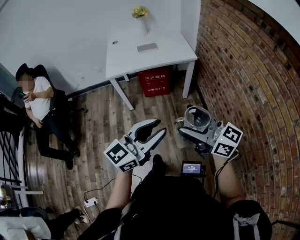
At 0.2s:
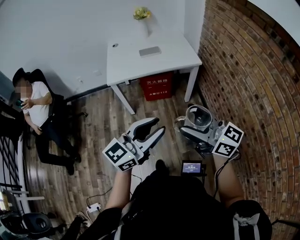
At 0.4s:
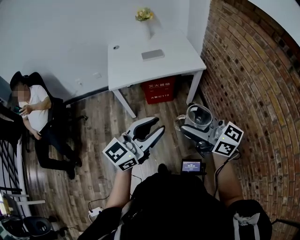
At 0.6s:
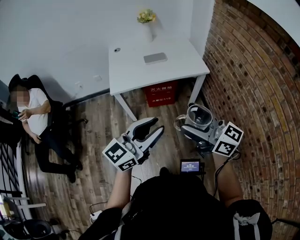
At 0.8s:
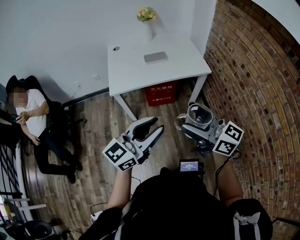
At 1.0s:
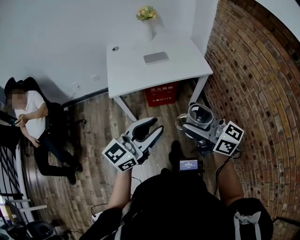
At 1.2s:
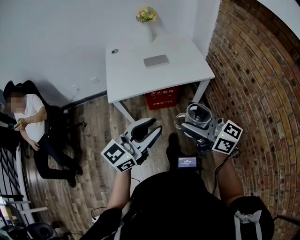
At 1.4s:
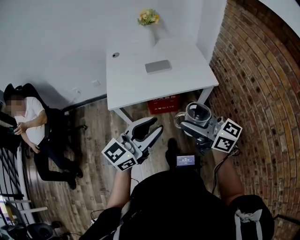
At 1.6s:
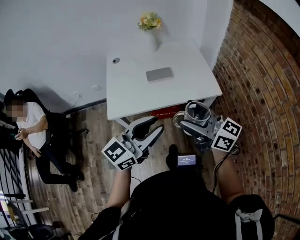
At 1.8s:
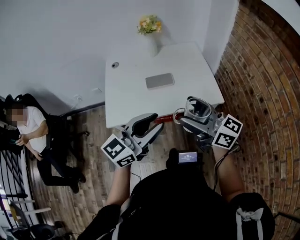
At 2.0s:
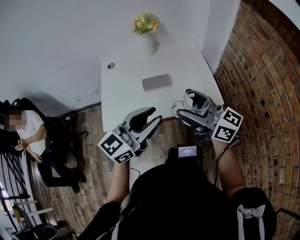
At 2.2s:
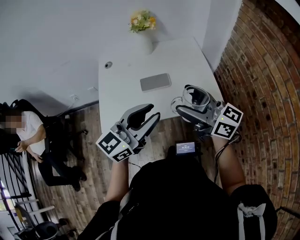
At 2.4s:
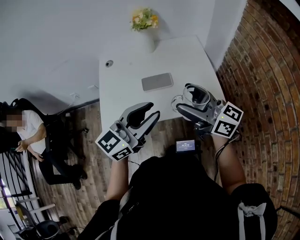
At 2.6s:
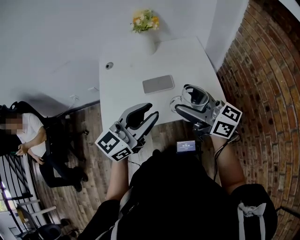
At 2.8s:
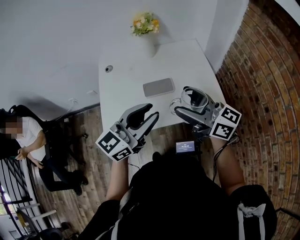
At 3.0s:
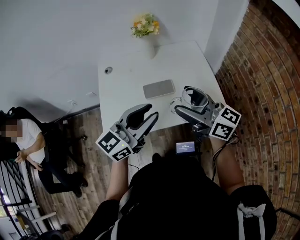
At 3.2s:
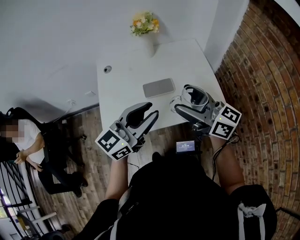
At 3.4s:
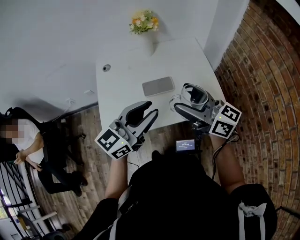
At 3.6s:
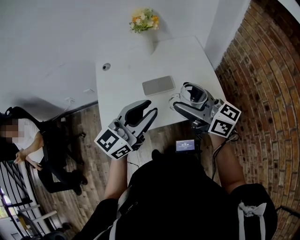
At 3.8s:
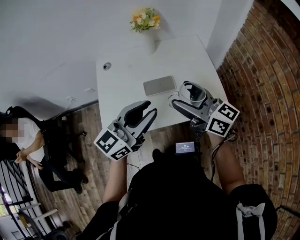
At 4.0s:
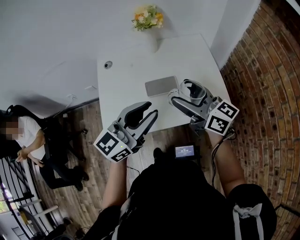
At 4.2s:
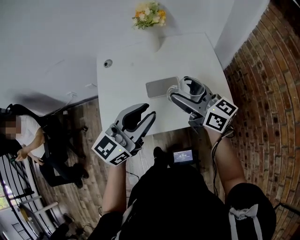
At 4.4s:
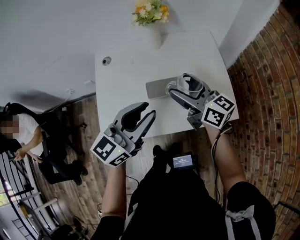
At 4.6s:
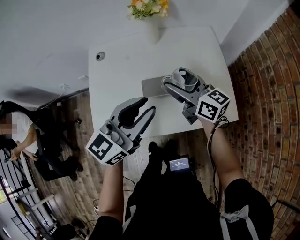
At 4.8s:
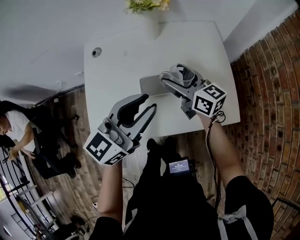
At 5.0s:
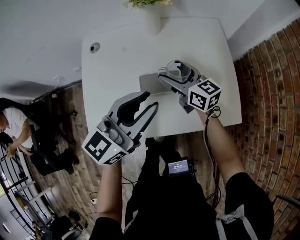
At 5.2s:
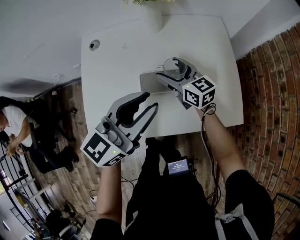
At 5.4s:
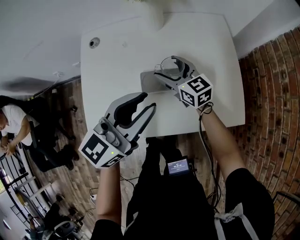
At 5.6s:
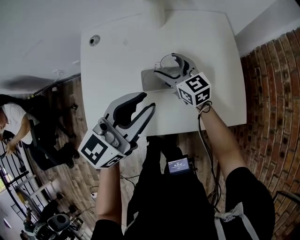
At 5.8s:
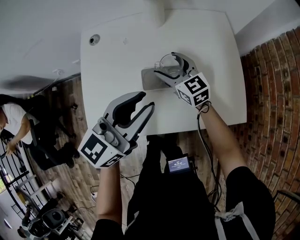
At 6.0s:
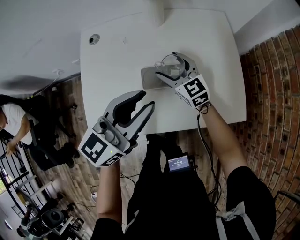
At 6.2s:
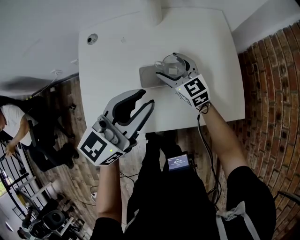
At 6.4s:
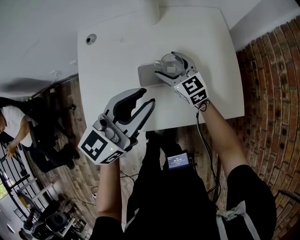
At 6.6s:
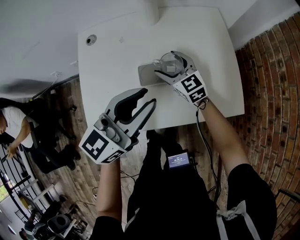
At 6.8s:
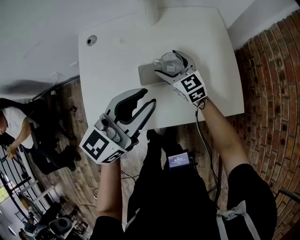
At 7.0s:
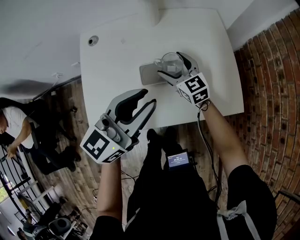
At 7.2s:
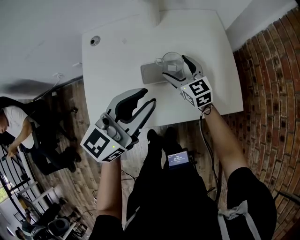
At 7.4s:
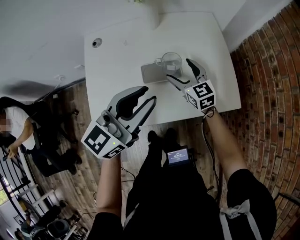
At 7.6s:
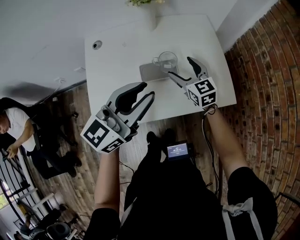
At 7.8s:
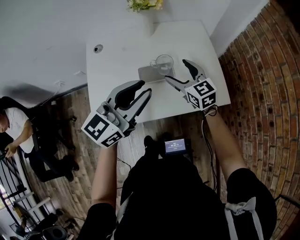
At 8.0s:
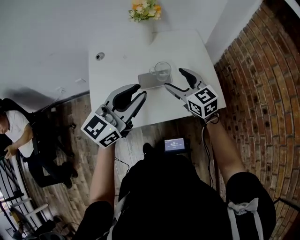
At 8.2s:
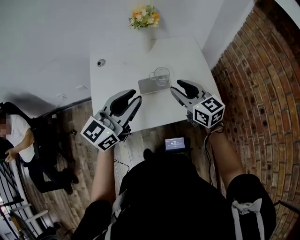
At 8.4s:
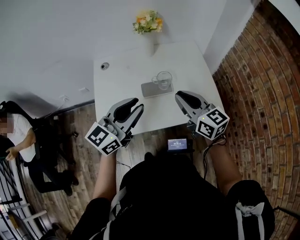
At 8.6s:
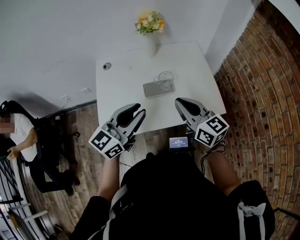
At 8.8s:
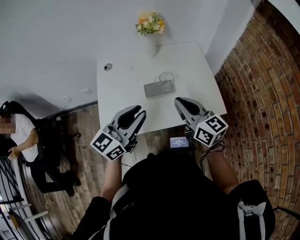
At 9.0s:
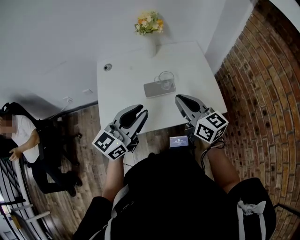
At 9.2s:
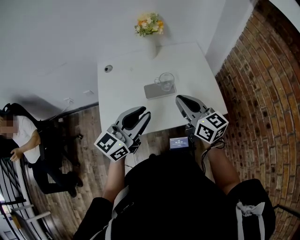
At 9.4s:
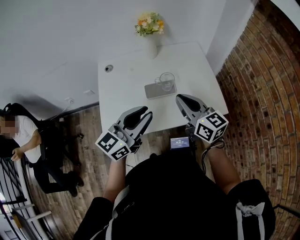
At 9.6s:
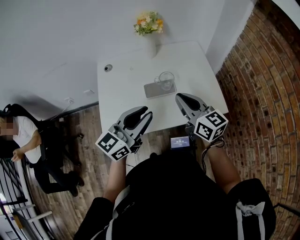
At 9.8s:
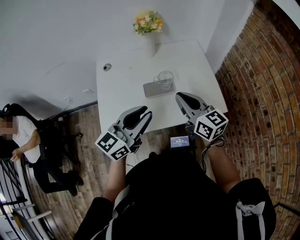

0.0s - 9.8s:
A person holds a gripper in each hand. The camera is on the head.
0.0s - 1.4s: Both grippers move forward, about 35 cm.
1.4s - 2.8s: The two grippers go roughly 25 cm forward.
2.8s - 4.2s: The right gripper is displaced forward and downward by about 10 cm, while the left gripper goes about 5 cm forward.
4.2s - 5.6s: The right gripper goes roughly 25 cm downward and forward, and rotates approximately 30 degrees; the left gripper moves forward and downward, roughly 10 cm.
5.6s - 7.0s: The grippers make only small movements.
7.0s - 8.4s: The right gripper shifts about 25 cm upward and backward, and closes. The left gripper goes some 10 cm backward and upward.
8.4s - 9.8s: The grippers make only small movements.

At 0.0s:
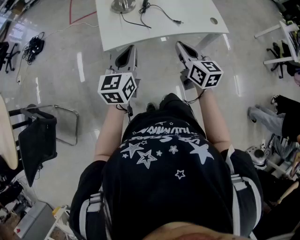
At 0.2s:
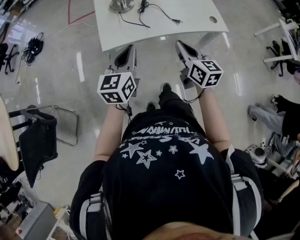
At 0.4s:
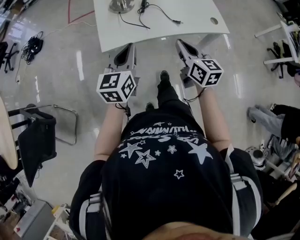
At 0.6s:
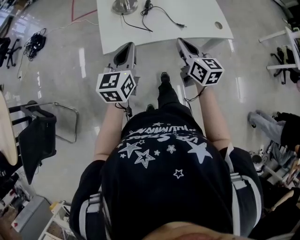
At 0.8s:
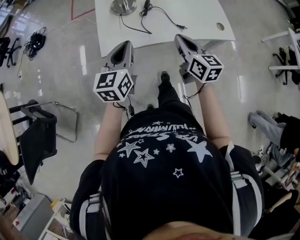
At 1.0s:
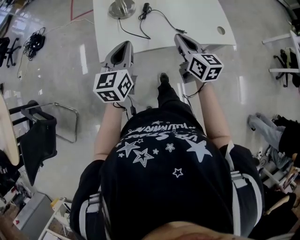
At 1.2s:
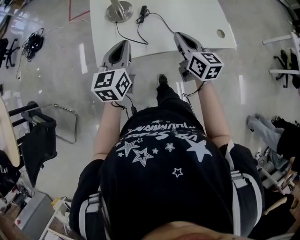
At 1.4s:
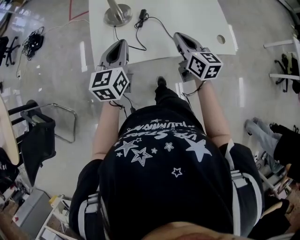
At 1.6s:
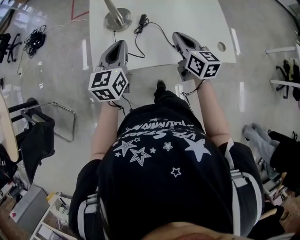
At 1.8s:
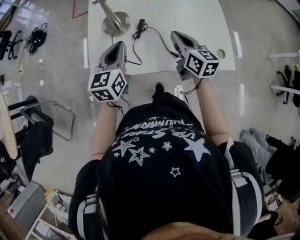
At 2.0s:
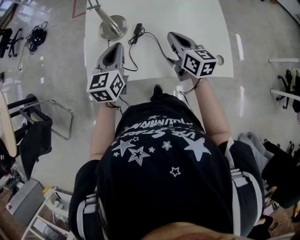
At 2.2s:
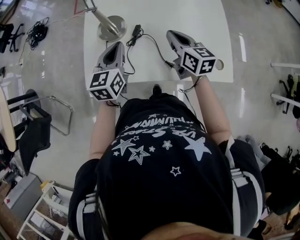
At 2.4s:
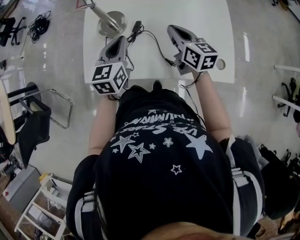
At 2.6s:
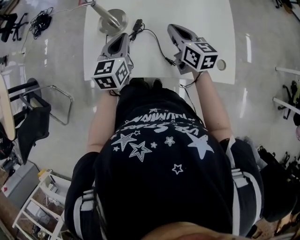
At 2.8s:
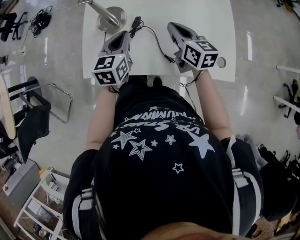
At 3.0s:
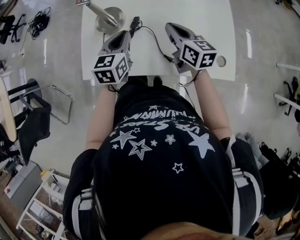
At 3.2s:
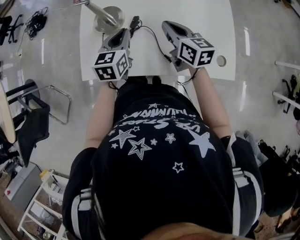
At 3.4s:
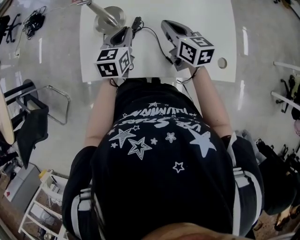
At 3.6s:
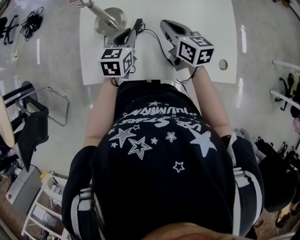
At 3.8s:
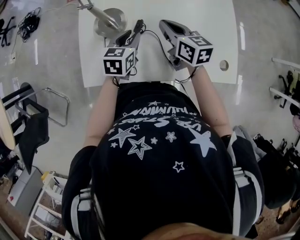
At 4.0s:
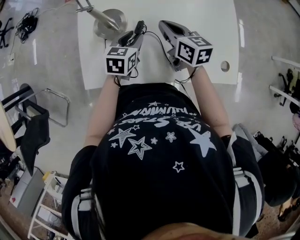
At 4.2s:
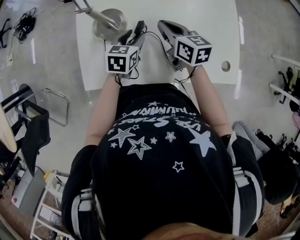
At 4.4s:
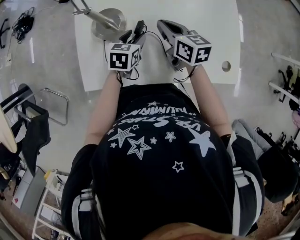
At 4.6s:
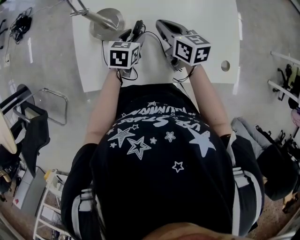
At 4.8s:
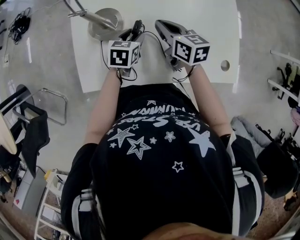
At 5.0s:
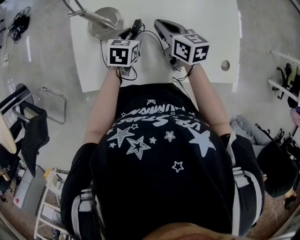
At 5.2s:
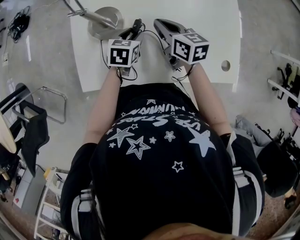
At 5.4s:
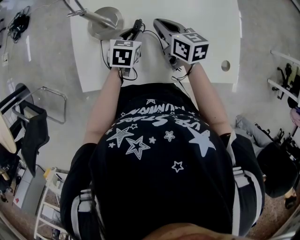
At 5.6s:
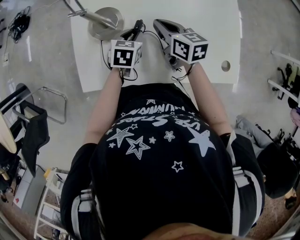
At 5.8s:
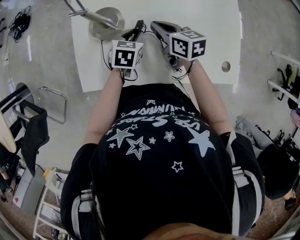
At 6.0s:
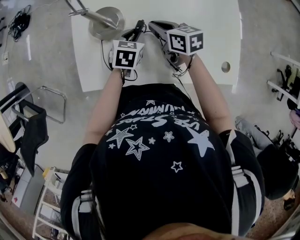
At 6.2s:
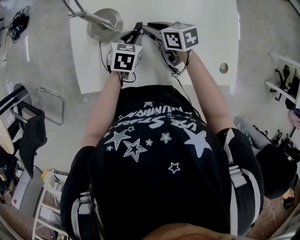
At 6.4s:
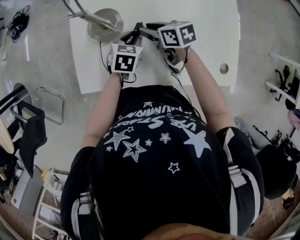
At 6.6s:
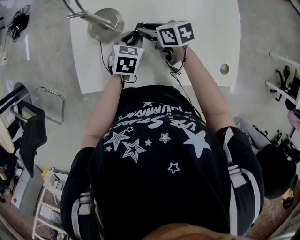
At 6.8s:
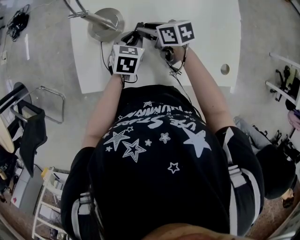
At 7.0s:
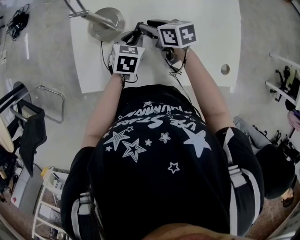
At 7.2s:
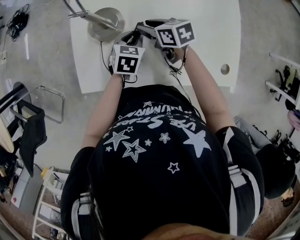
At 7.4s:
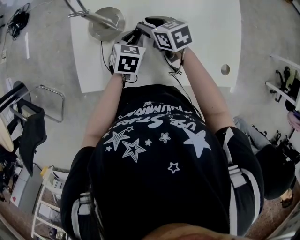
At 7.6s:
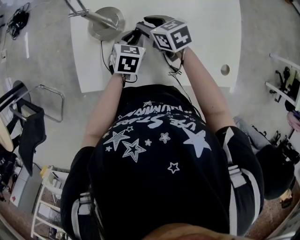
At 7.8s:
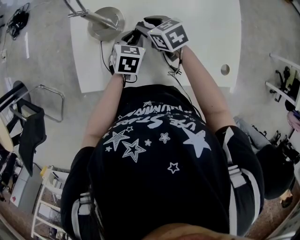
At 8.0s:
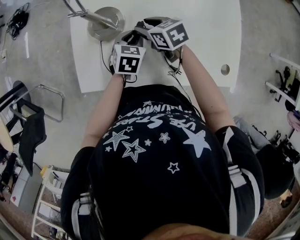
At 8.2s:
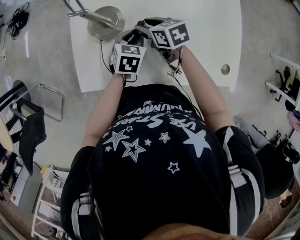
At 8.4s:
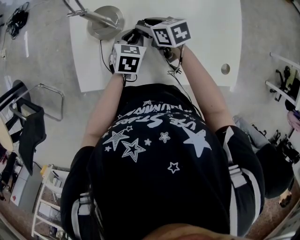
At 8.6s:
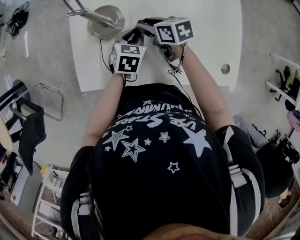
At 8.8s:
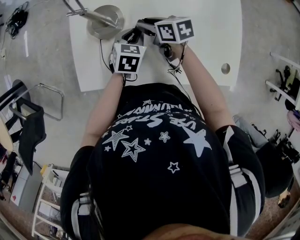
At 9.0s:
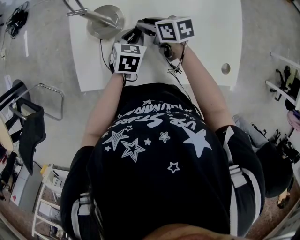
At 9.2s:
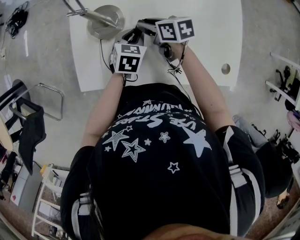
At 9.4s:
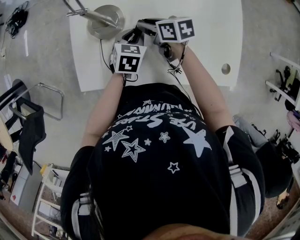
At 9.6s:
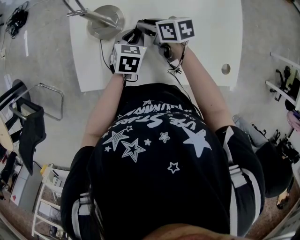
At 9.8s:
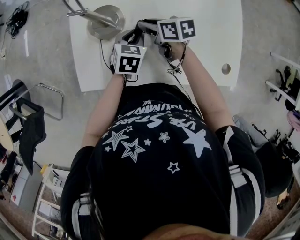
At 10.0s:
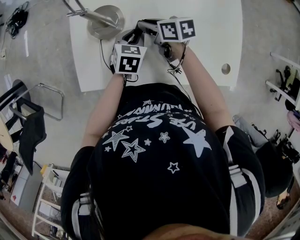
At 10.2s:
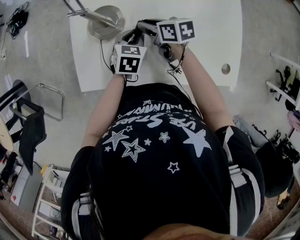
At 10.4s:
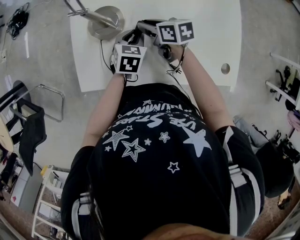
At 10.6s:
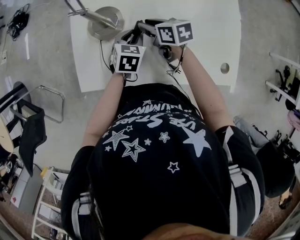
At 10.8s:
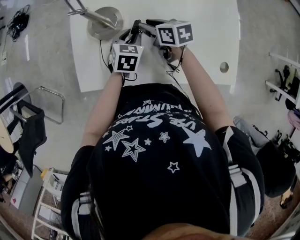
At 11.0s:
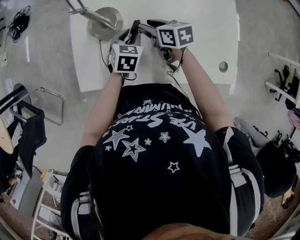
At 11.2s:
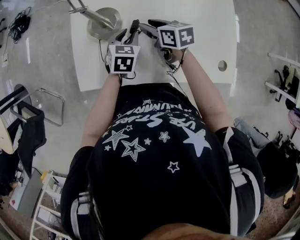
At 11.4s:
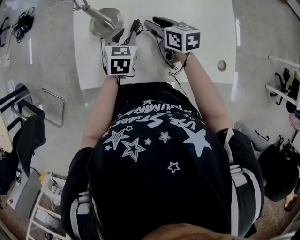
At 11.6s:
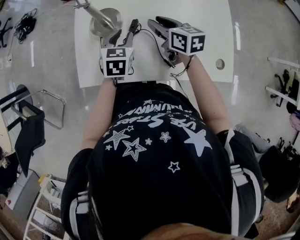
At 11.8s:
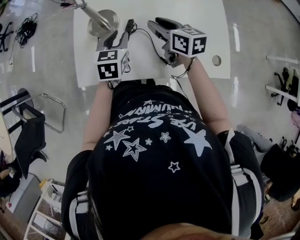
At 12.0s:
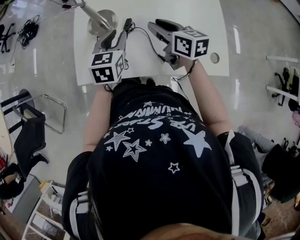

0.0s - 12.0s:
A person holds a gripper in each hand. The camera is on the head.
0.0s - 1.6s: The two grippers go roughly 25 cm forward.
1.6s - 3.0s: The right gripper travels forward by roughly 10 cm. The left gripper travels forward, to the right and downward by approximately 15 cm.
3.0s - 4.4s: The right gripper heads forward and to the left, covering roughly 10 cm; the left gripper is displaced downward and forward by roughly 15 cm, rotates some 20 degrees, and opens.
4.4s - 6.0s: The right gripper shifts by some 5 cm.
6.0s - 7.6s: The right gripper opens its fingers.
7.6s - 9.0s: The grippers move only a little.
9.0s - 10.4s: Both grippers stay about where they are.
10.4s - 12.0s: The left gripper goes about 15 cm upward and backward, while the right gripper is displaced upward, backward and to the right by roughly 15 cm, and turns by about 20 degrees.

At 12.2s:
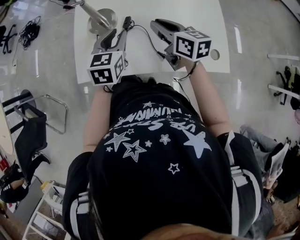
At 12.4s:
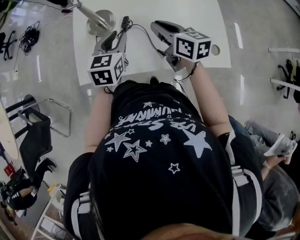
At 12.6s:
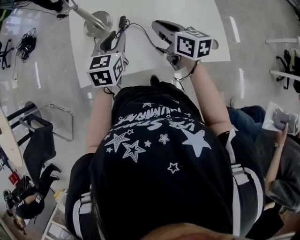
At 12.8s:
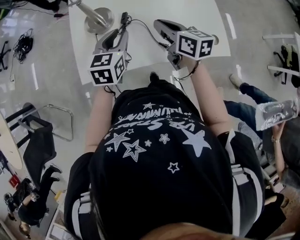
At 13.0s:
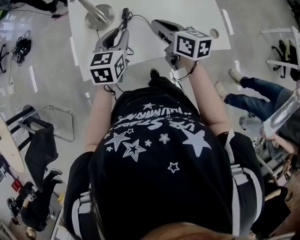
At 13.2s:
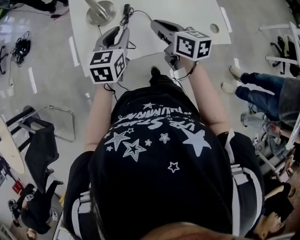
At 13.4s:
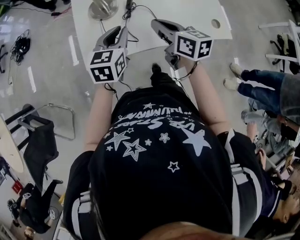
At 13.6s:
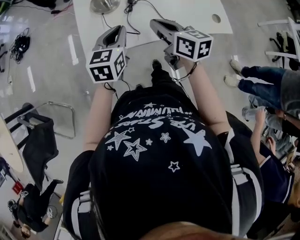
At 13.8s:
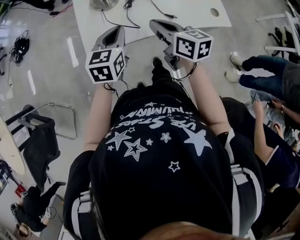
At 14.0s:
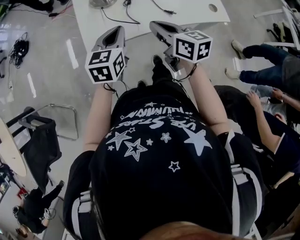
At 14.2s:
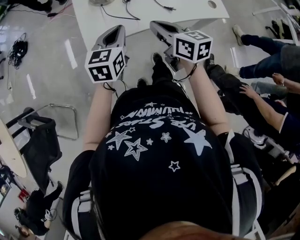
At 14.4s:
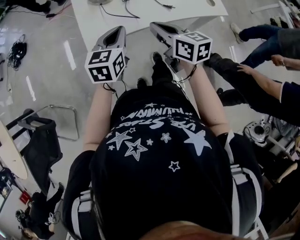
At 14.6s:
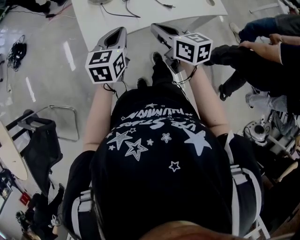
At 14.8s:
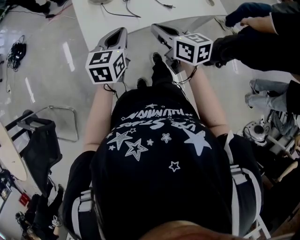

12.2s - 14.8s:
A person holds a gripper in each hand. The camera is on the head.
12.2s - 13.4s: The two grippers go roughly 15 cm backward and to the left.
13.4s - 14.8s: The left gripper travels backward by some 10 cm; the right gripper is displaced backward and to the left by roughly 15 cm.
